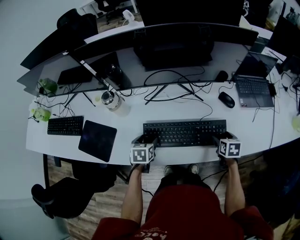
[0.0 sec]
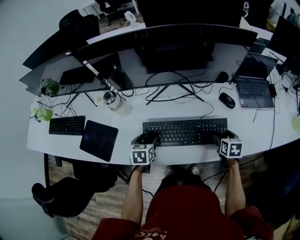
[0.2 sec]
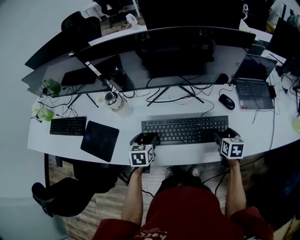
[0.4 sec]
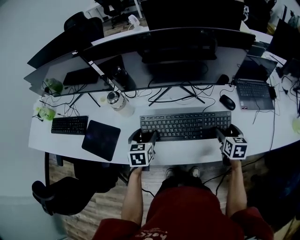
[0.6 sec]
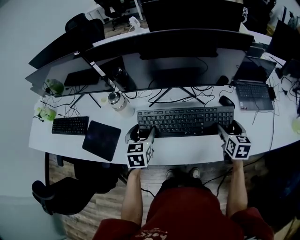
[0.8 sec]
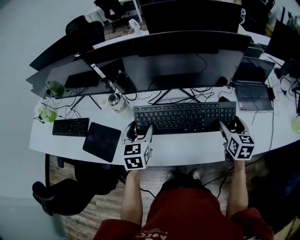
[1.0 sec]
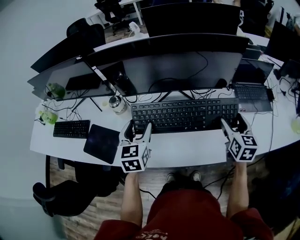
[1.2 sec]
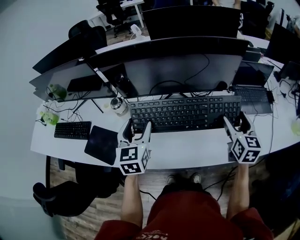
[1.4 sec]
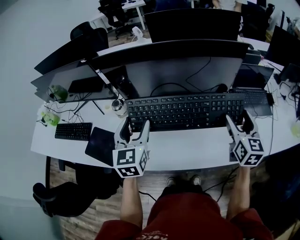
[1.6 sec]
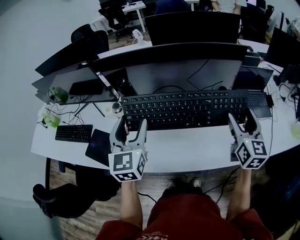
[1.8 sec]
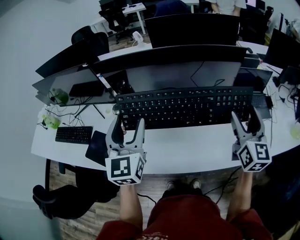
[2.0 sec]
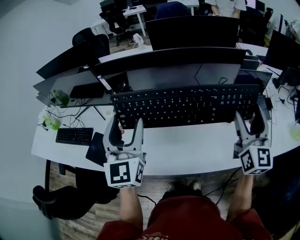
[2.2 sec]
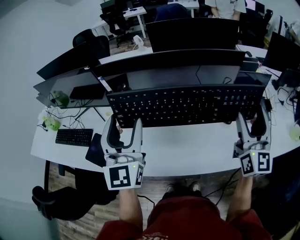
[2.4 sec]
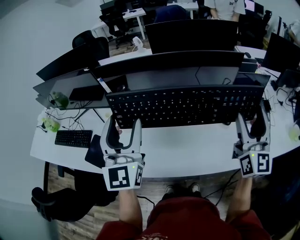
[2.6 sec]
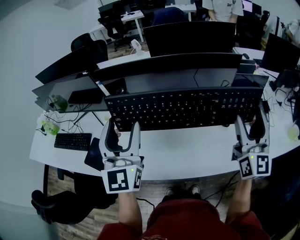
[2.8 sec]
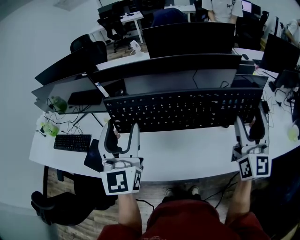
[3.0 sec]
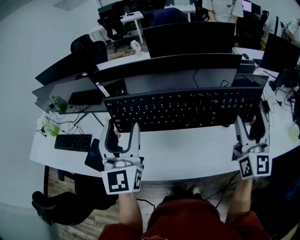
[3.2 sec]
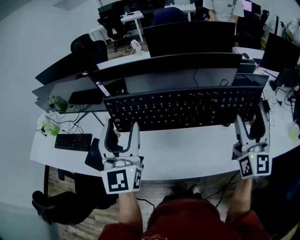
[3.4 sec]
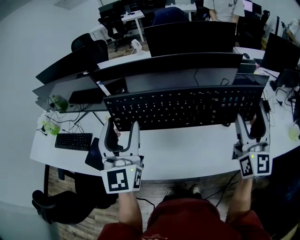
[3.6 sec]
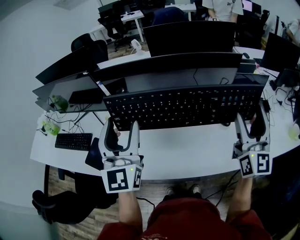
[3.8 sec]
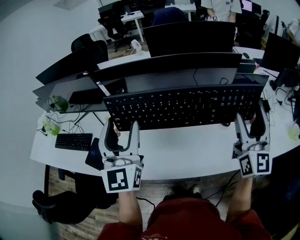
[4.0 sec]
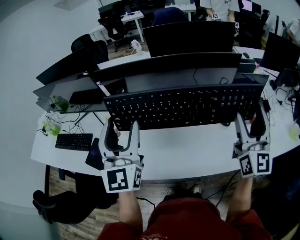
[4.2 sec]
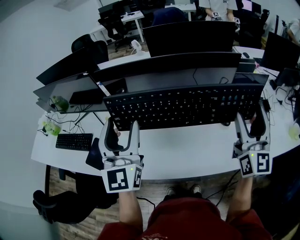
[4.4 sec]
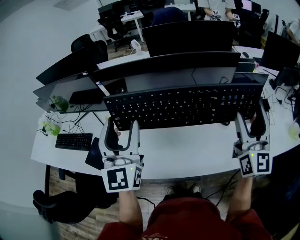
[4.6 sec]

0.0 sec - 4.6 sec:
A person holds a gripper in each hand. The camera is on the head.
0.0 sec - 1.6 sec: Both grippers move upward, roughly 30 cm. The right gripper points its fingers approximately 40 degrees further upward. The left gripper angles its fingers upward, by about 40 degrees.
1.6 sec - 3.0 sec: Both grippers move upward, about 15 cm. The left gripper swivels about 30 degrees, while the right gripper changes its angle by about 30 degrees.
3.0 sec - 4.6 sec: The two grippers keep their place.

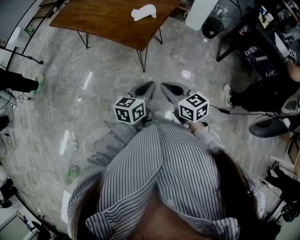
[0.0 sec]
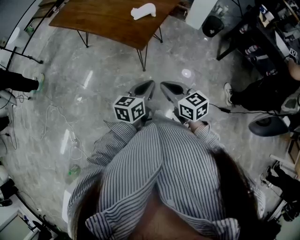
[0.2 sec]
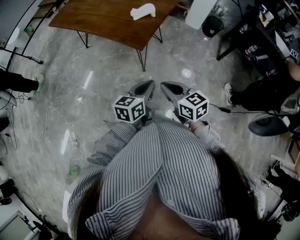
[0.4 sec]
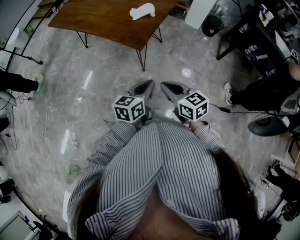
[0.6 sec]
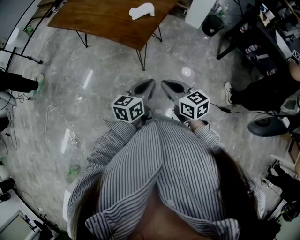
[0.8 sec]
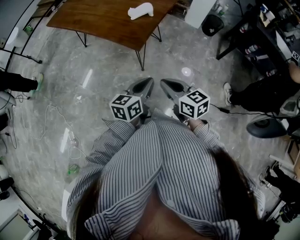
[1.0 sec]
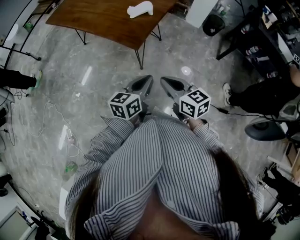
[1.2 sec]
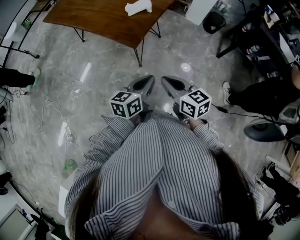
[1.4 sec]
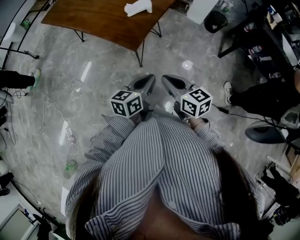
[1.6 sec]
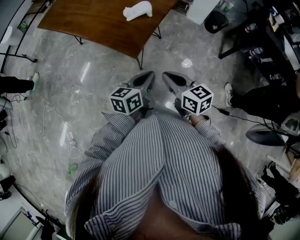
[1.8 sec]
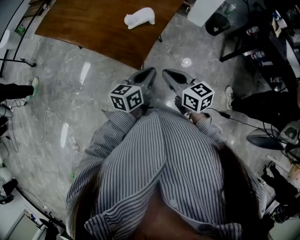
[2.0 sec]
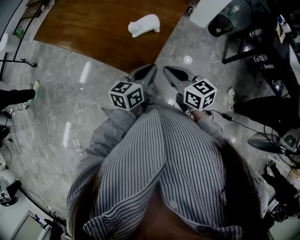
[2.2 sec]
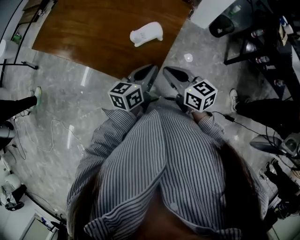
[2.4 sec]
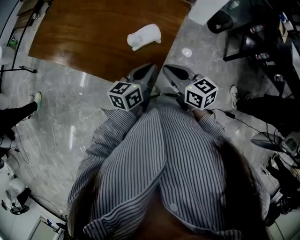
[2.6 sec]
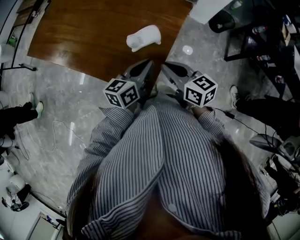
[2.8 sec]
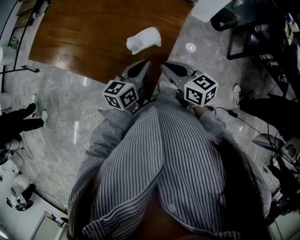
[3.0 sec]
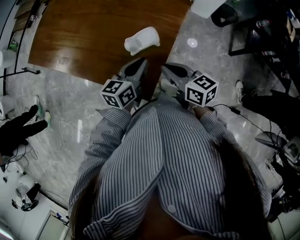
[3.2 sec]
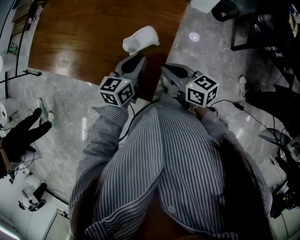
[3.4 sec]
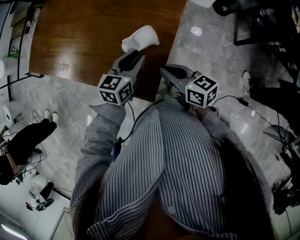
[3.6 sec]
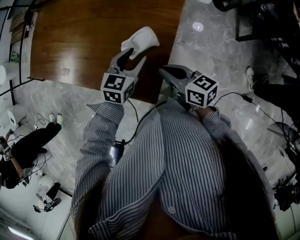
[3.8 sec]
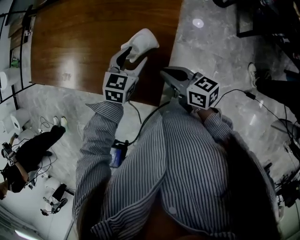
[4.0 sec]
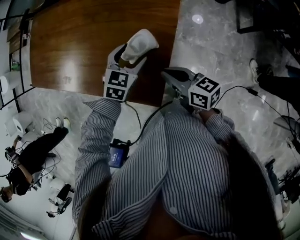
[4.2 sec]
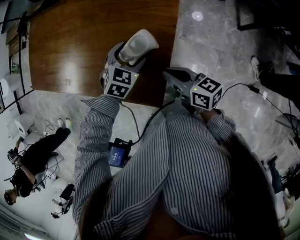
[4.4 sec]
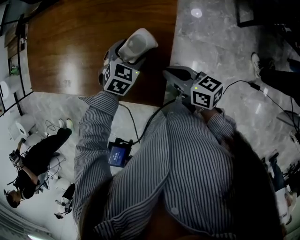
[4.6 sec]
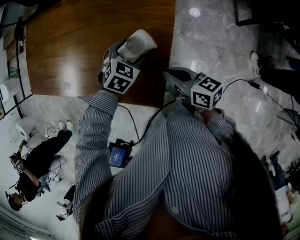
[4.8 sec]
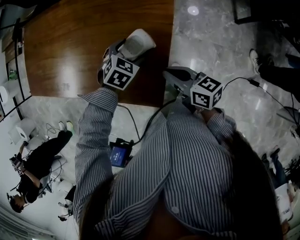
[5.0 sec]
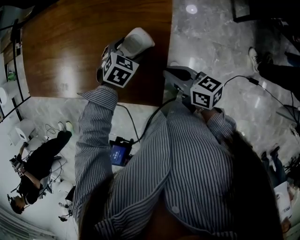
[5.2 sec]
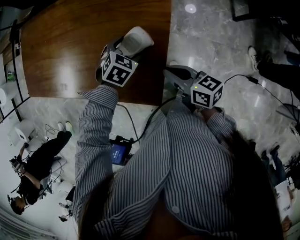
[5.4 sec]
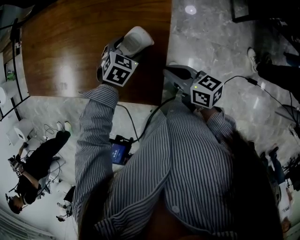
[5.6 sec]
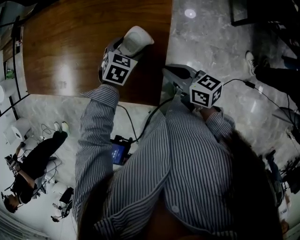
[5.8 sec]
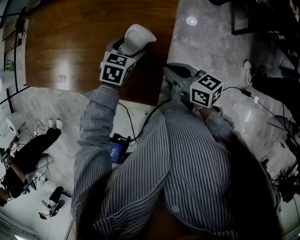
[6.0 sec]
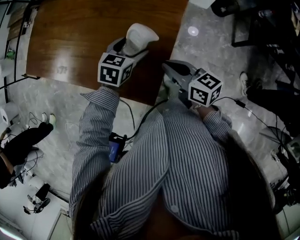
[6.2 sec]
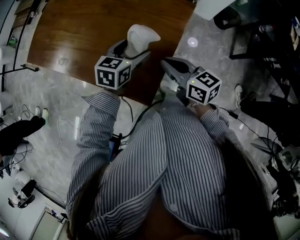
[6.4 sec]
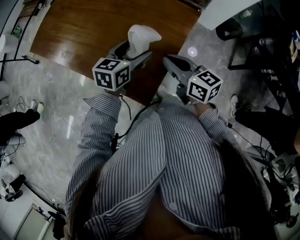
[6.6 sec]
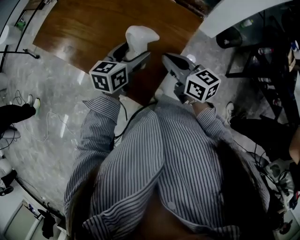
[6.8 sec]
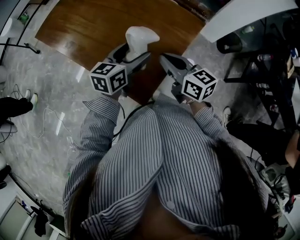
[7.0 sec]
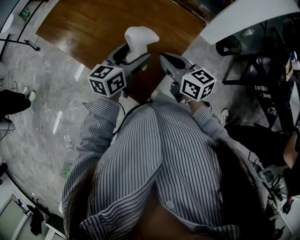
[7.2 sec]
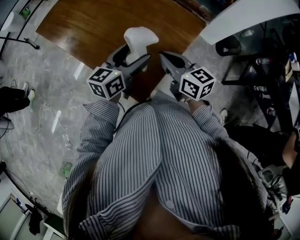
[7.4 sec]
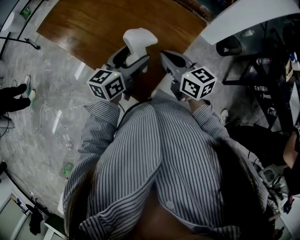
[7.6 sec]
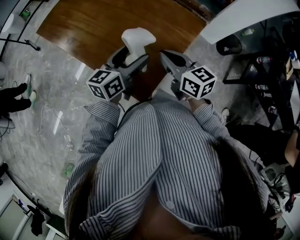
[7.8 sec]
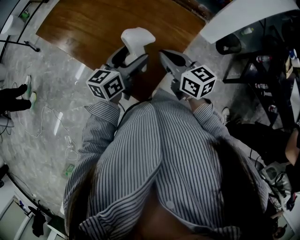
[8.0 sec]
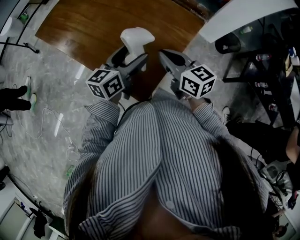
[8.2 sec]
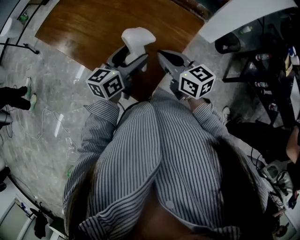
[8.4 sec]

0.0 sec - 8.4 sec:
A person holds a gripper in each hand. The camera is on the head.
0.0 sec - 1.4 sec: The left gripper shifts by approximately 5 cm. The right gripper changes place by about 5 cm.
1.4 sec - 2.8 sec: The two grippers go roughly 35 cm forward.
2.8 sec - 4.2 sec: The left gripper goes approximately 15 cm forward and downward, rotates around the line of its fingers by some 40 degrees, clockwise from behind, and opens up. The right gripper is displaced downward by some 5 cm.
4.2 sec - 5.6 sec: The left gripper moves downward, about 5 cm, and changes its angle by approximately 20 degrees.
5.6 sec - 7.0 sec: The right gripper is displaced upward, forward and to the left by about 15 cm, and swivels approximately 30 degrees; the left gripper travels upward by some 20 cm, and angles its fingers upward, by approximately 40 degrees.
7.0 sec - 8.4 sec: The grippers move only a little.

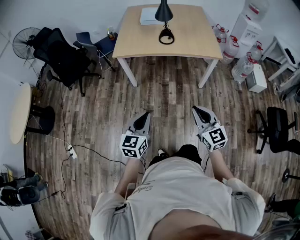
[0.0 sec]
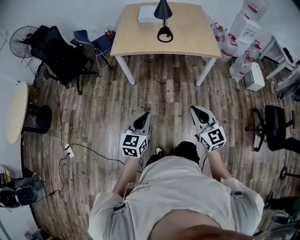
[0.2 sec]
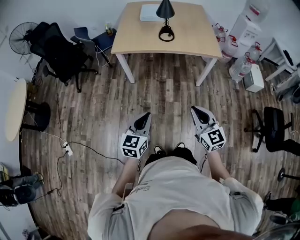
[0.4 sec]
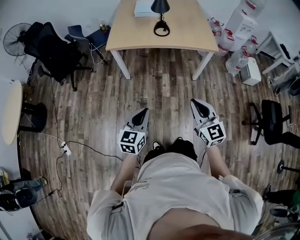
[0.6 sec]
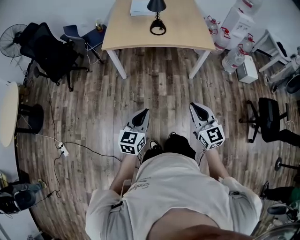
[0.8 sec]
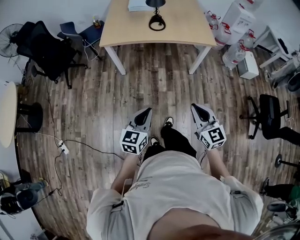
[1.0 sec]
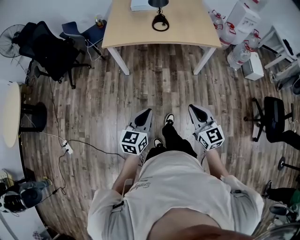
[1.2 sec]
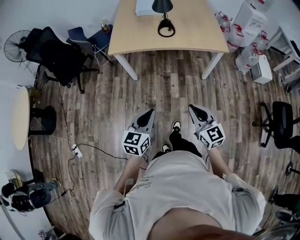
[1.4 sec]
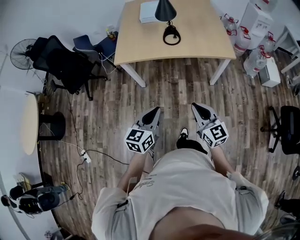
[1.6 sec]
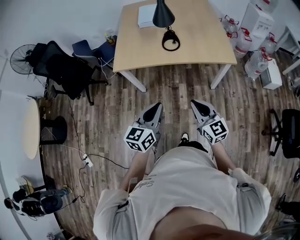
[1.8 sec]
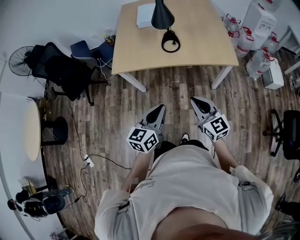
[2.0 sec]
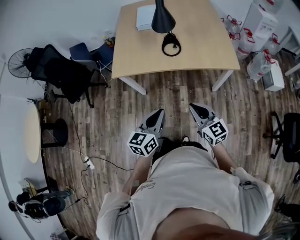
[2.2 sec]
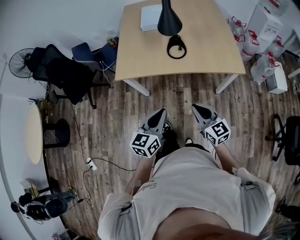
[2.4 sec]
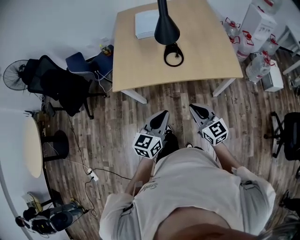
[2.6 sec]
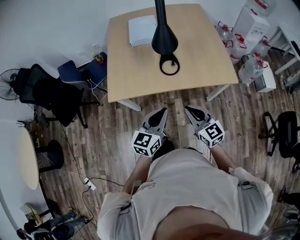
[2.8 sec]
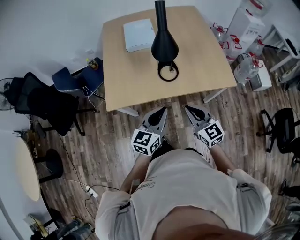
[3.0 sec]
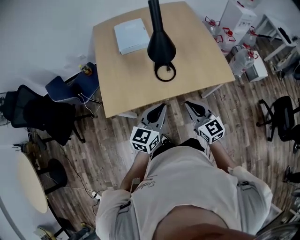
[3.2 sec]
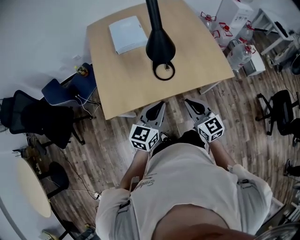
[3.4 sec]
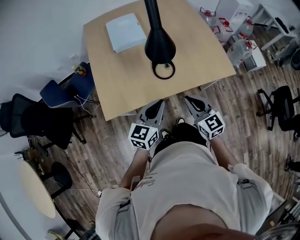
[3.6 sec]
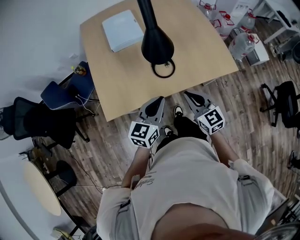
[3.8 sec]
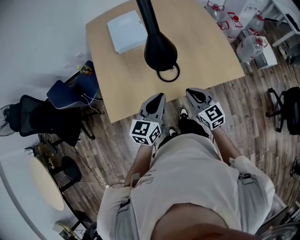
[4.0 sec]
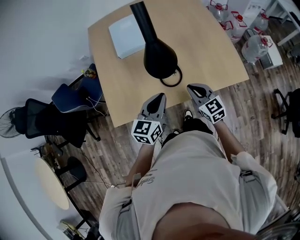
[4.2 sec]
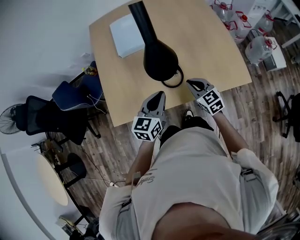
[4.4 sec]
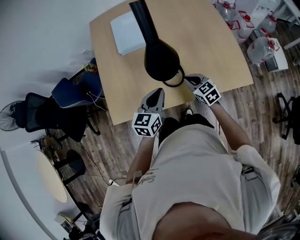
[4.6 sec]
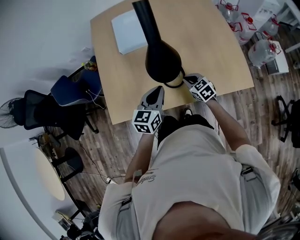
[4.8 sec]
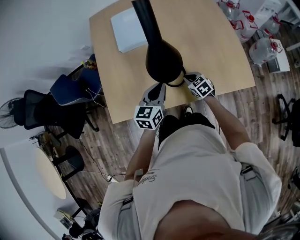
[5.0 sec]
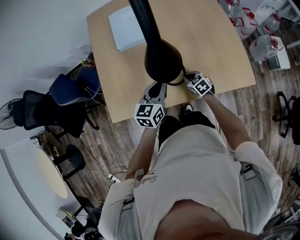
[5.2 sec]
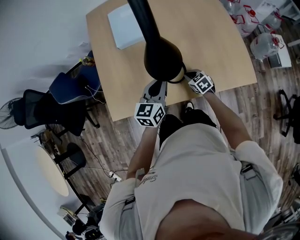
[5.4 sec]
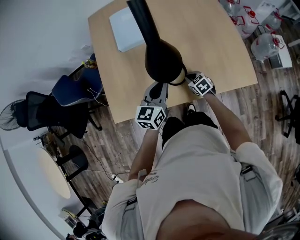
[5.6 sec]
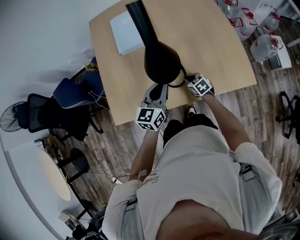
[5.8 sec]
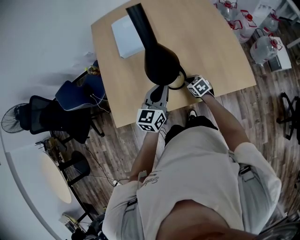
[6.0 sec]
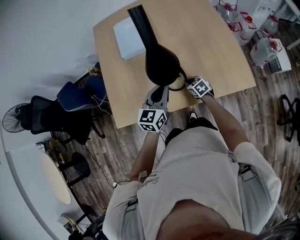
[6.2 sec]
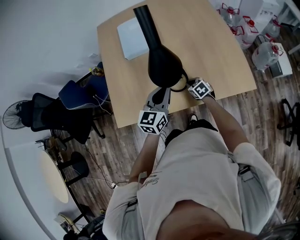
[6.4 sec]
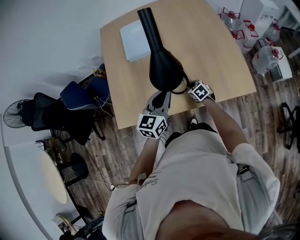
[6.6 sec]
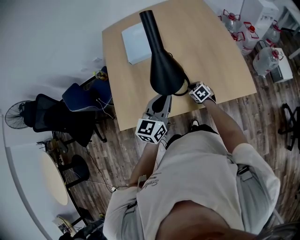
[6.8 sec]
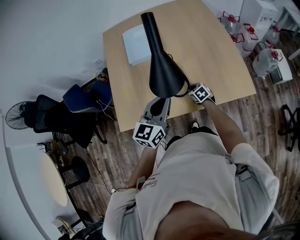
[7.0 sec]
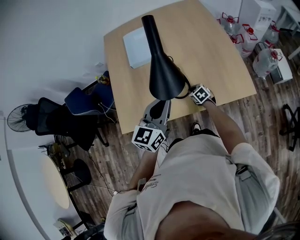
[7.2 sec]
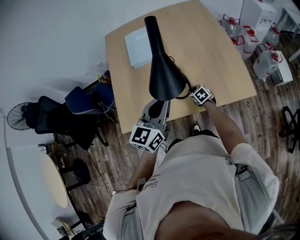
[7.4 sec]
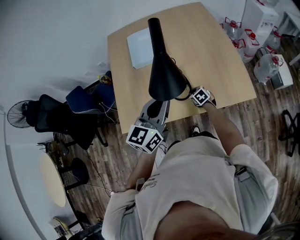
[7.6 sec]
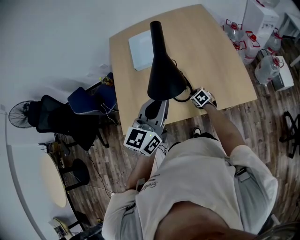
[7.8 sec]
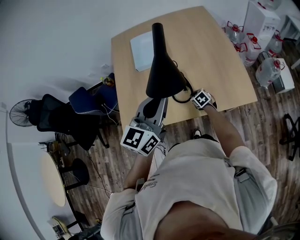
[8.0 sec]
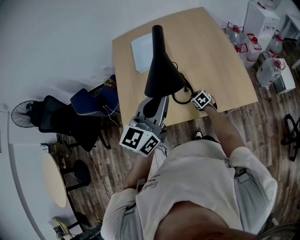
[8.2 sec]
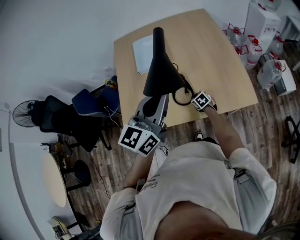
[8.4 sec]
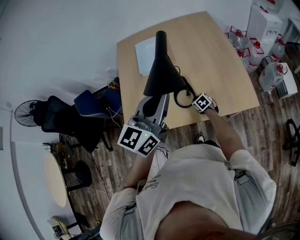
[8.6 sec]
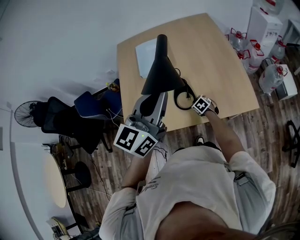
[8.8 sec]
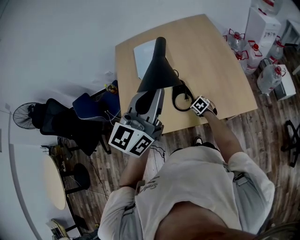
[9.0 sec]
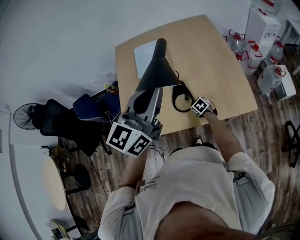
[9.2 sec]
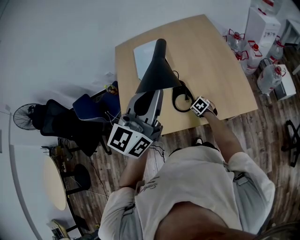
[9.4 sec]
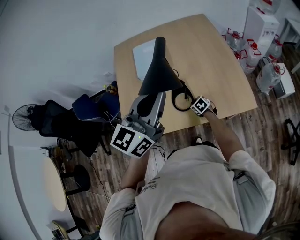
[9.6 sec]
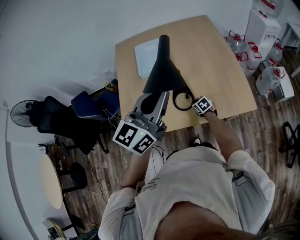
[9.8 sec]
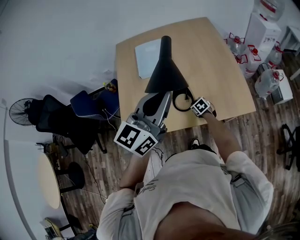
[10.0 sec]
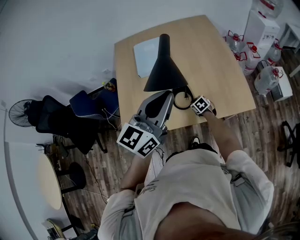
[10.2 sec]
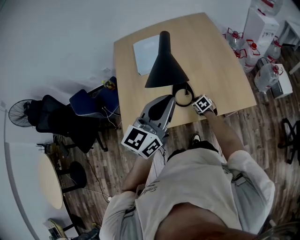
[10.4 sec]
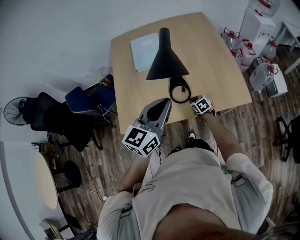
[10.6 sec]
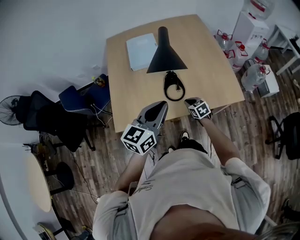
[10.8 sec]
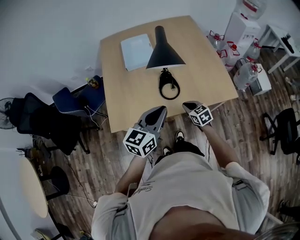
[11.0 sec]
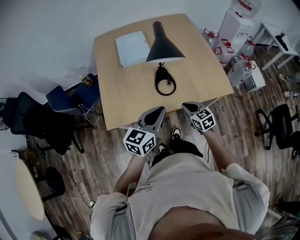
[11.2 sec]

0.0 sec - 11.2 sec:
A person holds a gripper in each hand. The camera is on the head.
0.0 sec - 1.6 sec: Both grippers travel together forward, approximately 15 cm.
1.6 sec - 3.2 sec: The grippers both shift forward by approximately 35 cm.
3.2 sec - 4.8 sec: The two grippers go approximately 25 cm forward and downward. The right gripper swivels roughly 30 degrees.
4.8 sec - 6.4 sec: The right gripper moves downward, roughly 10 cm.
6.4 sec - 8.0 sec: The left gripper is displaced upward by roughly 20 cm.
8.0 sec - 9.6 sec: The left gripper heads upward, covering roughly 5 cm.
9.6 sec - 11.2 sec: The left gripper moves downward and backward, approximately 20 cm. The right gripper goes about 25 cm upward and backward, and swivels approximately 30 degrees.
